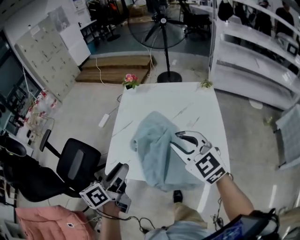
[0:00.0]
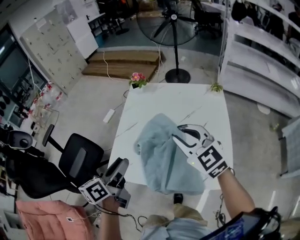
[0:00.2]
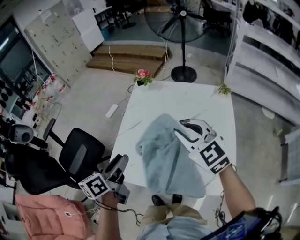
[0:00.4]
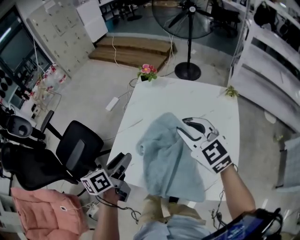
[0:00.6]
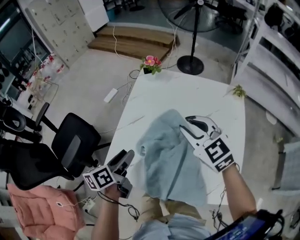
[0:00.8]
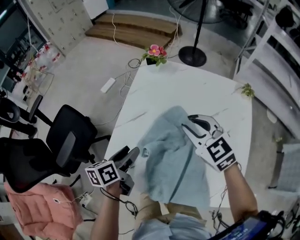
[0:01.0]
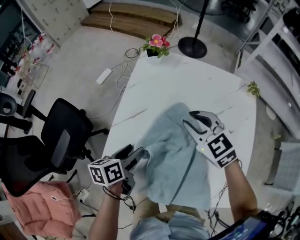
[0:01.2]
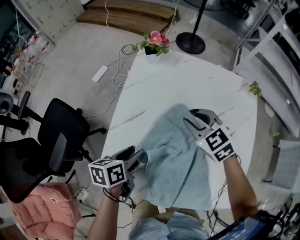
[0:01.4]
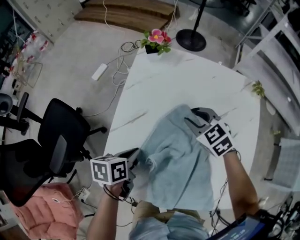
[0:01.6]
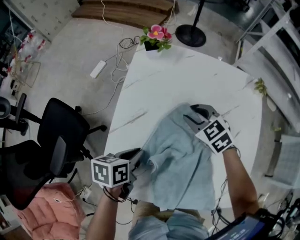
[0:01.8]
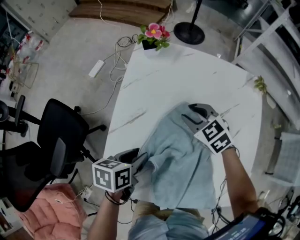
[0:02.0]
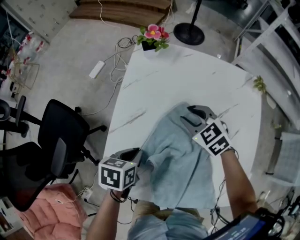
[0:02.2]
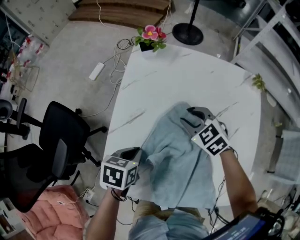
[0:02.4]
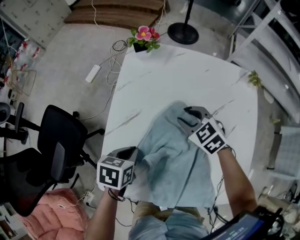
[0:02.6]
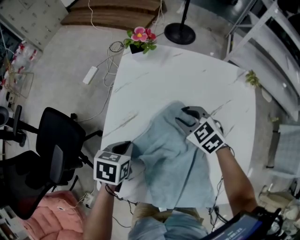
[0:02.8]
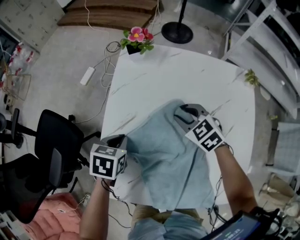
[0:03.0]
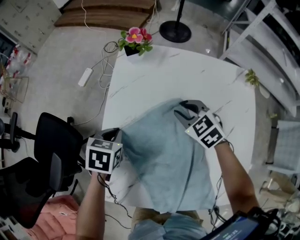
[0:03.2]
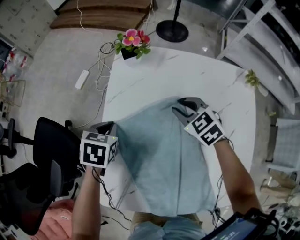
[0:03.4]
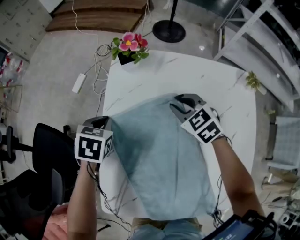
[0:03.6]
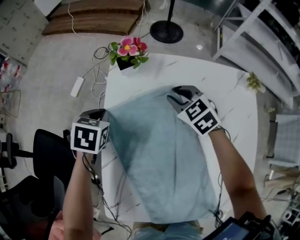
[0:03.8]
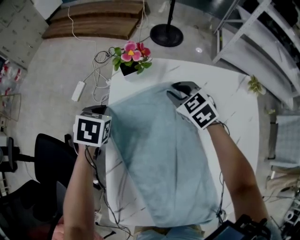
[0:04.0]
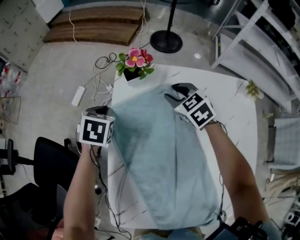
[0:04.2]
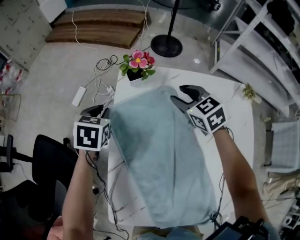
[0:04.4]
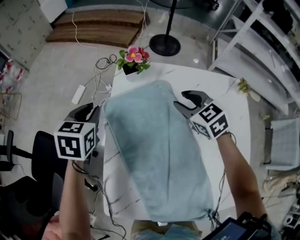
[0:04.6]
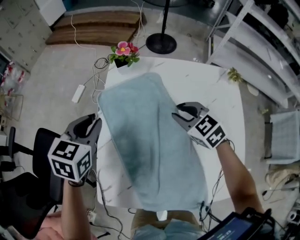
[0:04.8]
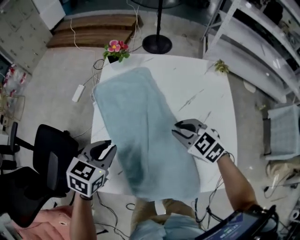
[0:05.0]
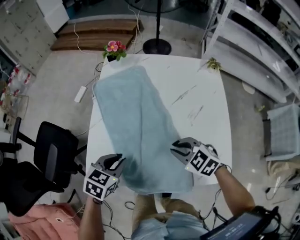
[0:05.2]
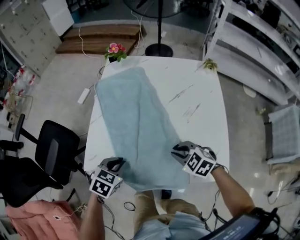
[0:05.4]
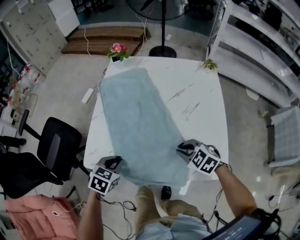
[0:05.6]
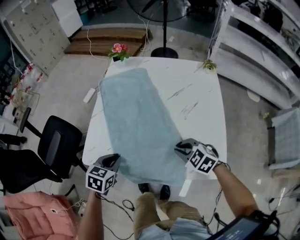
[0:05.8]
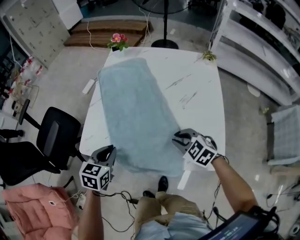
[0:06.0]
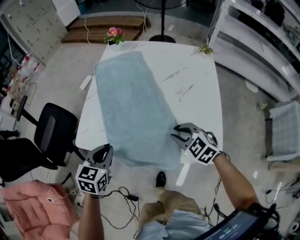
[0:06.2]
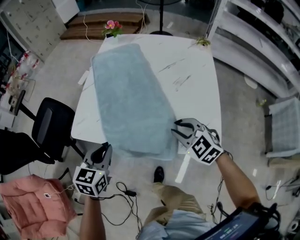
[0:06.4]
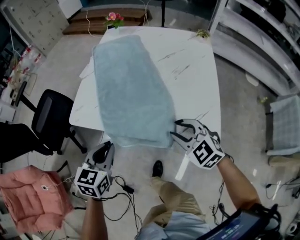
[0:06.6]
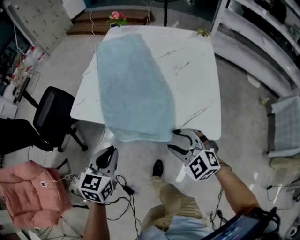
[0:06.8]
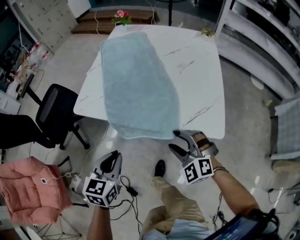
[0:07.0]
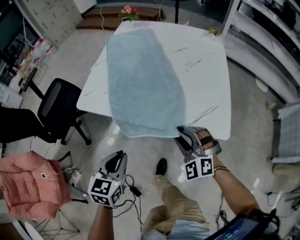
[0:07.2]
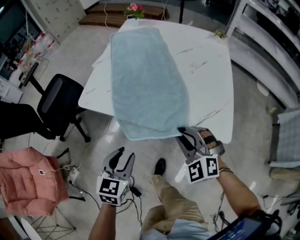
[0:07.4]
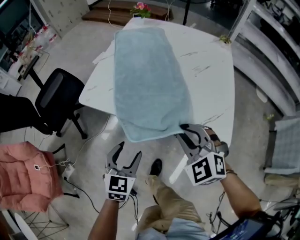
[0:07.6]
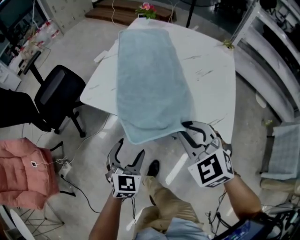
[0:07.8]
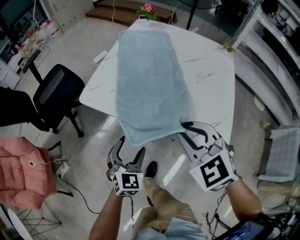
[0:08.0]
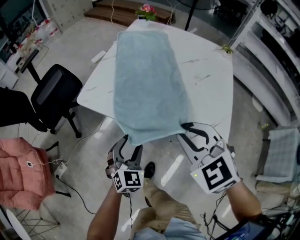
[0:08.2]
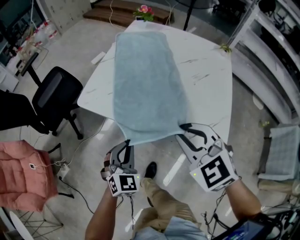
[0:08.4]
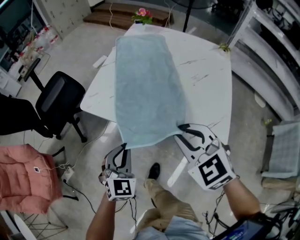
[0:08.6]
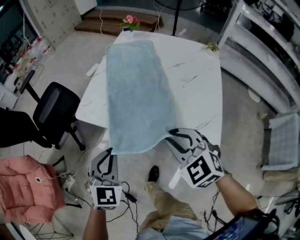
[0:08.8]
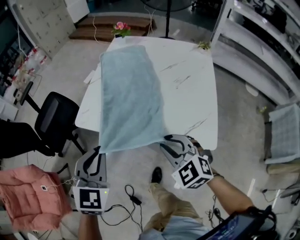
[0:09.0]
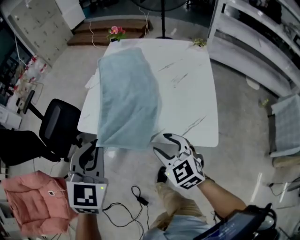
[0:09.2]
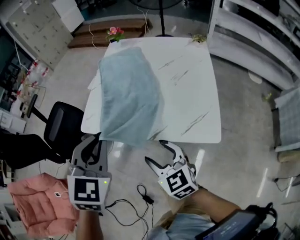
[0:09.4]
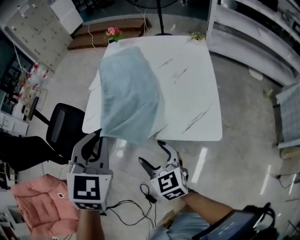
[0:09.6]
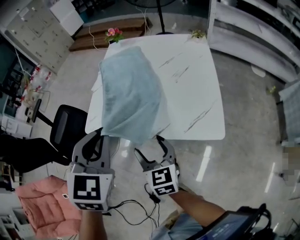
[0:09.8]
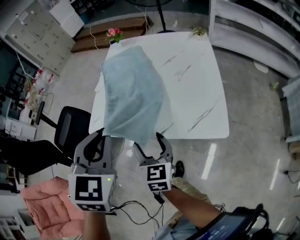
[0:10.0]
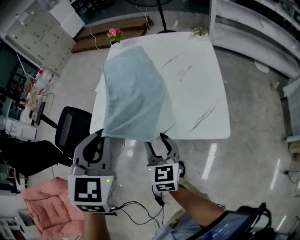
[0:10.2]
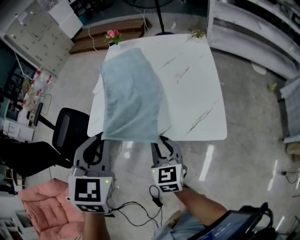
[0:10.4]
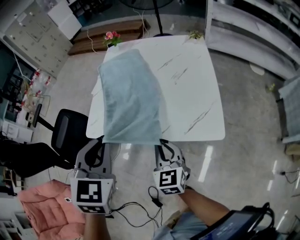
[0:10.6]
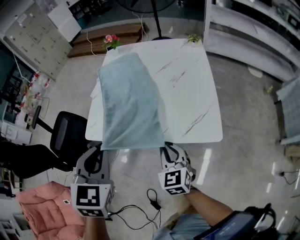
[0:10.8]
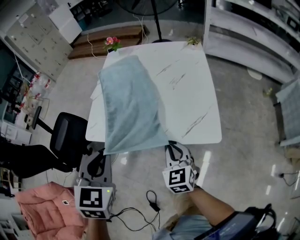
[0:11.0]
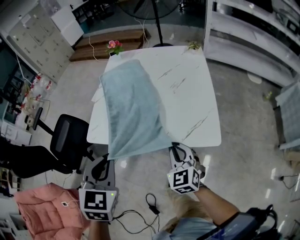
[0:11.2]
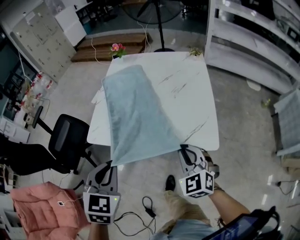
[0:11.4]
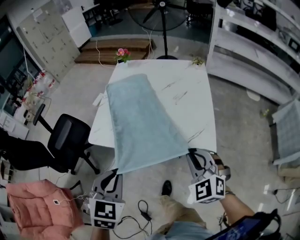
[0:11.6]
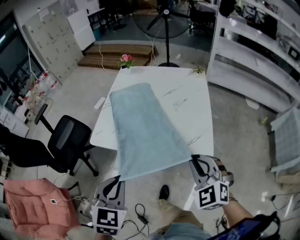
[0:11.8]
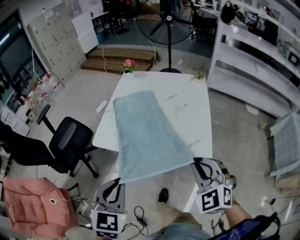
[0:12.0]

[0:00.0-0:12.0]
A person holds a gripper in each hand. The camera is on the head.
0:00.0 to 0:01.6: The right gripper shifts about 35 cm forward and downward, and swivels approximately 30 degrees. Meanwhile the left gripper shifts approximately 30 cm downward and forward, angles its fingers downward, by some 30 degrees, and closes its fingers.
0:01.6 to 0:03.0: The left gripper is displaced forward by about 5 cm, turns by about 30 degrees, and opens, then closes once more.
0:03.0 to 0:04.4: Both grippers travel together forward, roughly 20 cm.
0:04.4 to 0:06.0: The two grippers travel together, backward, some 50 cm. The right gripper changes its angle by some 20 degrees, and closes.
0:06.0 to 0:07.6: The right gripper travels backward and upward by some 15 cm, turns by some 30 degrees, and opens, then closes once more, while the left gripper is displaced backward by roughly 20 cm, and opens.
0:07.6 to 0:09.0: The left gripper moves upward, approximately 20 cm, and closes its fingers.
0:09.0 to 0:10.4: The right gripper rotates around the line of its fingers by approximately 40 degrees, clockwise from behind, and opens, then closes again, while the left gripper shifts roughly 10 cm upward.
0:10.4 to 0:12.0: The left gripper moves backward, roughly 15 cm. The right gripper travels upward, to the right and backward by approximately 20 cm, and twists about 50 degrees counterclockwise, seen from behind.

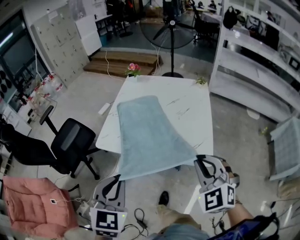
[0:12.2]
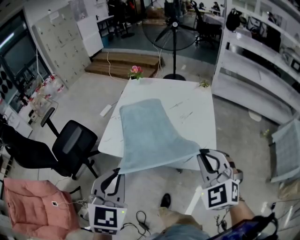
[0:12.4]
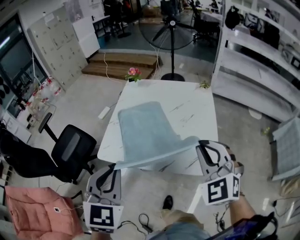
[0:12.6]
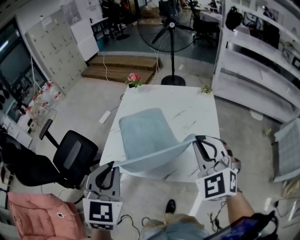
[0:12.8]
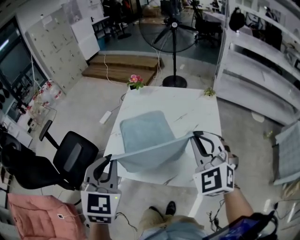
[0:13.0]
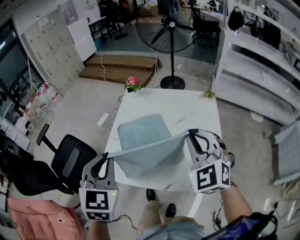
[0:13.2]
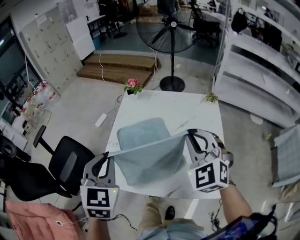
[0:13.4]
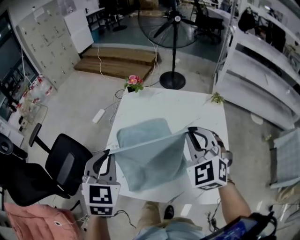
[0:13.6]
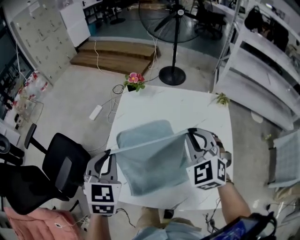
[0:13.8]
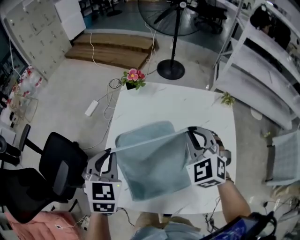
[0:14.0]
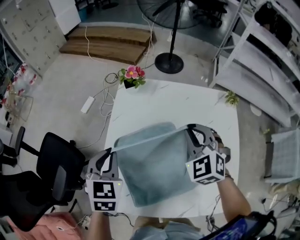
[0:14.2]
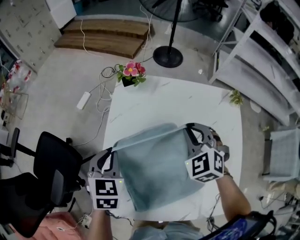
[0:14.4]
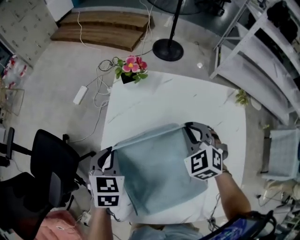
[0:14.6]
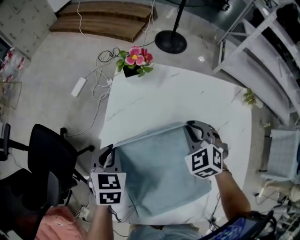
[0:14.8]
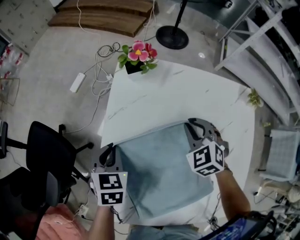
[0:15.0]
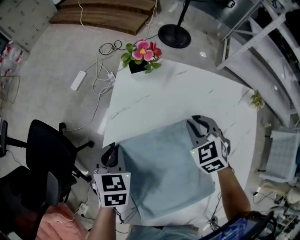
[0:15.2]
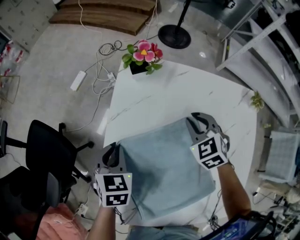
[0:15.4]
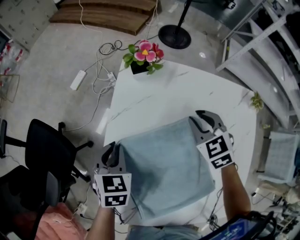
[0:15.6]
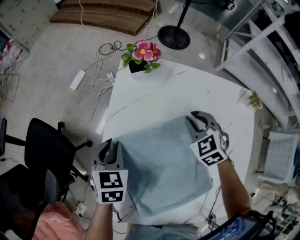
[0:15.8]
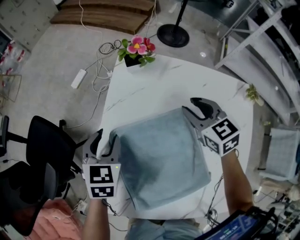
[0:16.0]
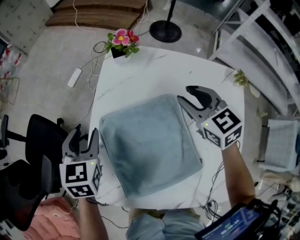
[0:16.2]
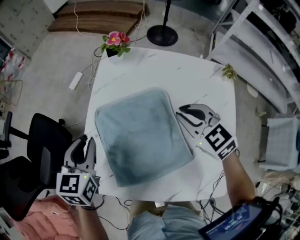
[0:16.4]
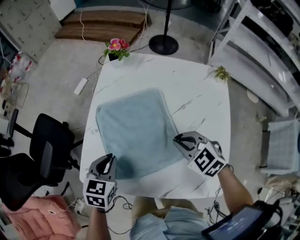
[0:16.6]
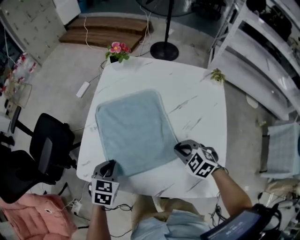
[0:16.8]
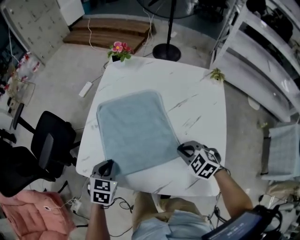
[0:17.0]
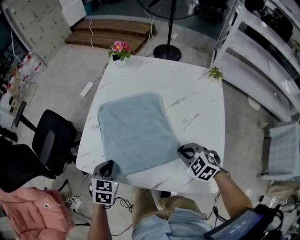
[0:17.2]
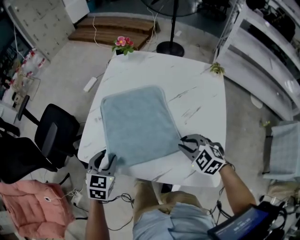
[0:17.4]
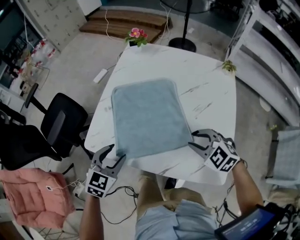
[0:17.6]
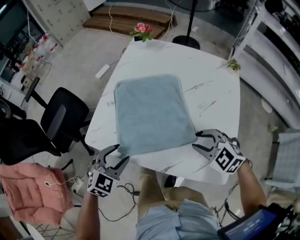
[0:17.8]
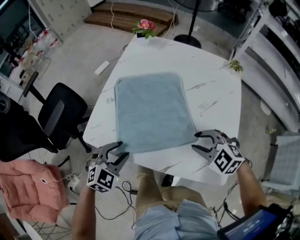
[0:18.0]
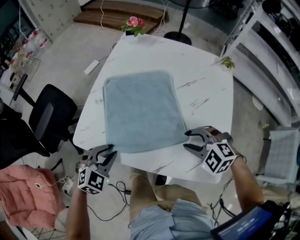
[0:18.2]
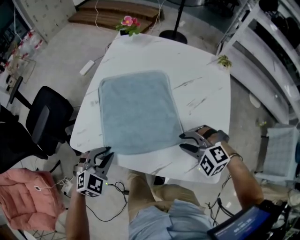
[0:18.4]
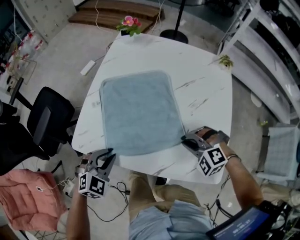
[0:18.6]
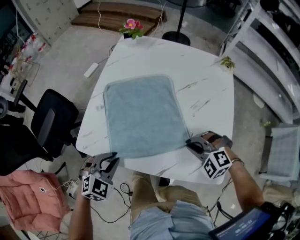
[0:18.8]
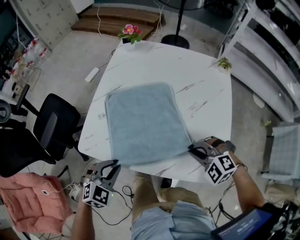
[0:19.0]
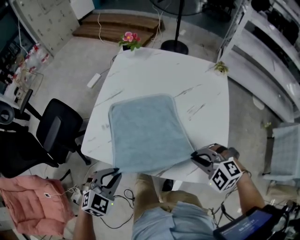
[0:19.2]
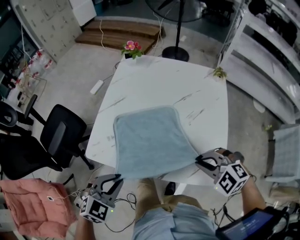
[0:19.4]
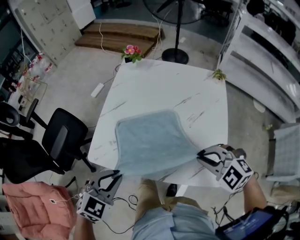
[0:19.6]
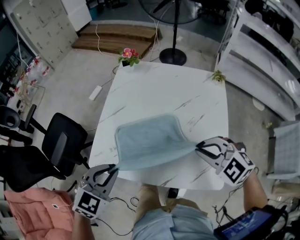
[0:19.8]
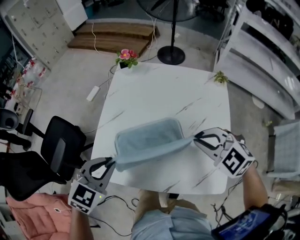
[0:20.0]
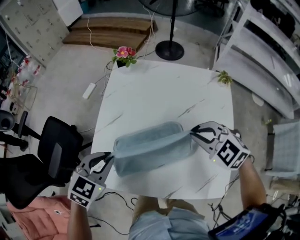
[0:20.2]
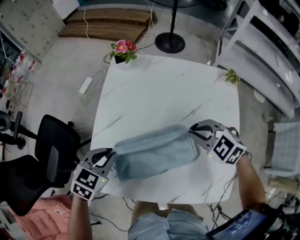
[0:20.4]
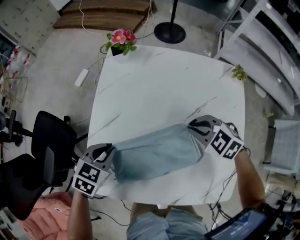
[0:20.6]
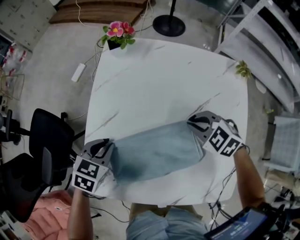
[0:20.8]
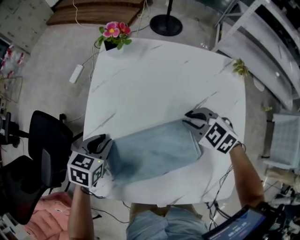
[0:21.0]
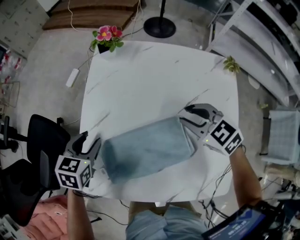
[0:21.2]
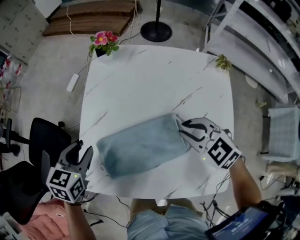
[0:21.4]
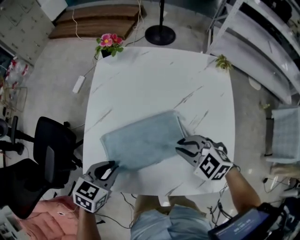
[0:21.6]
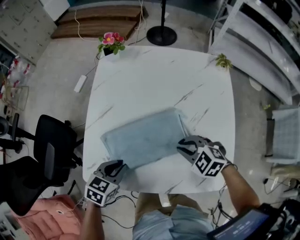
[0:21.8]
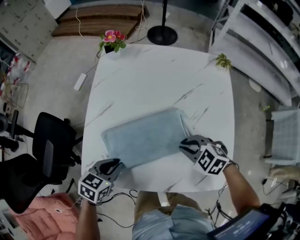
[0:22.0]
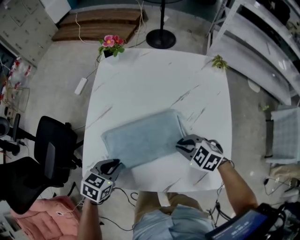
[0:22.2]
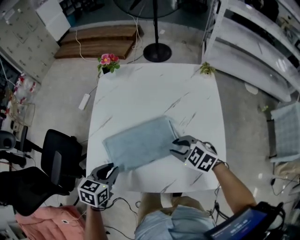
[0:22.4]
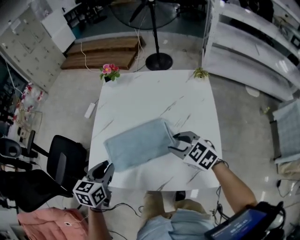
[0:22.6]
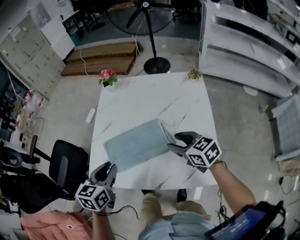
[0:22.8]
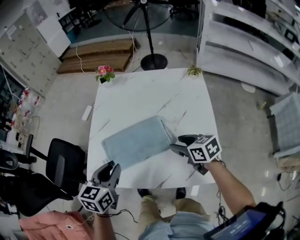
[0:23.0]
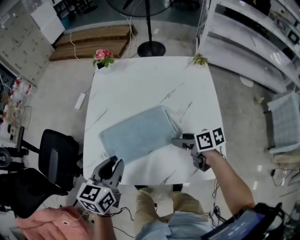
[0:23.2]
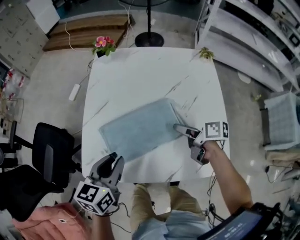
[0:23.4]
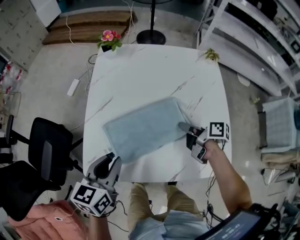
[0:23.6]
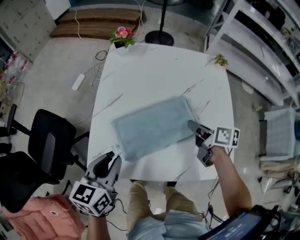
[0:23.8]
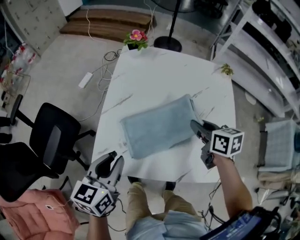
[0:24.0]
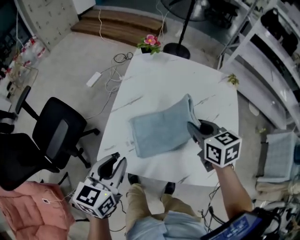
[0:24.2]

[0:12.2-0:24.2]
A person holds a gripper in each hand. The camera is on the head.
0:12.2 to 0:13.8: The grippers both shift forward by roughly 40 cm.
0:13.8 to 0:15.2: Both grippers move downward and forward, some 30 cm. The right gripper changes its angle by approximately 20 degrees. Meanwhile the left gripper swivels about 20 degrees.
0:15.2 to 0:16.6: Both grippers move backward, about 20 cm. The right gripper swivels some 20 degrees, while the left gripper opens, then closes once more.
0:16.6 to 0:18.2: The left gripper travels backward and downward by some 15 cm, rotates some 30 degrees, and opens, then closes once more. The right gripper goes roughly 15 cm backward, rotates about 30 degrees, and opens up.
0:18.2 to 0:19.8: Both grippers travel together upward, about 15 cm. The right gripper closes.
0:19.8 to 0:21.2: The grippers both shift forward and downward by about 25 cm. The left gripper changes its angle by about 30 degrees, and opens up. The right gripper turns by some 30 degrees, and opens its fingers.
0:21.2 to 0:22.6: The right gripper heads backward, covering approximately 15 cm, while the left gripper heads backward and upward, covering roughly 20 cm, and closes its fingers.
0:22.6 to 0:24.2: The right gripper goes some 10 cm to the left and forward, reaches approximately 10 cm downward, then returns, rotates some 20 degrees, and opens, then closes once more. Meanwhile the left gripper heads to the left, covering roughly 5 cm.
